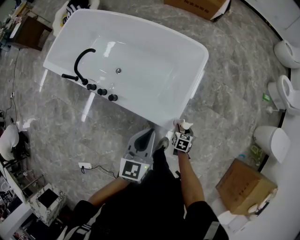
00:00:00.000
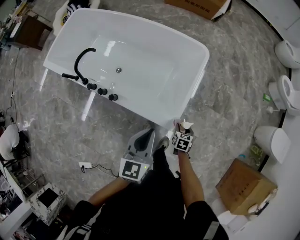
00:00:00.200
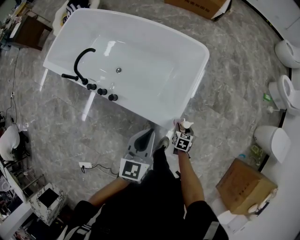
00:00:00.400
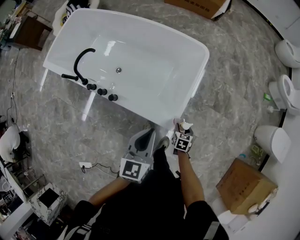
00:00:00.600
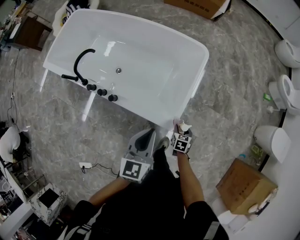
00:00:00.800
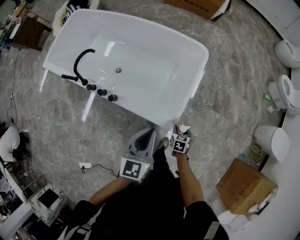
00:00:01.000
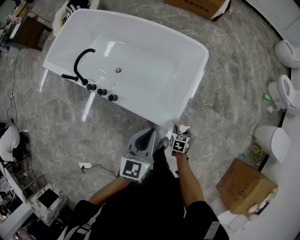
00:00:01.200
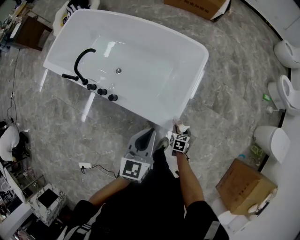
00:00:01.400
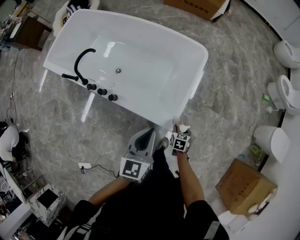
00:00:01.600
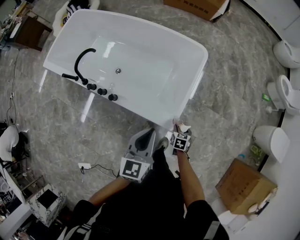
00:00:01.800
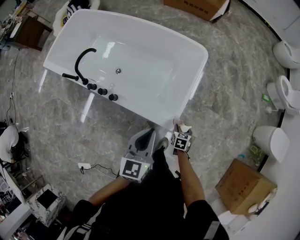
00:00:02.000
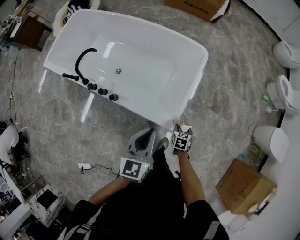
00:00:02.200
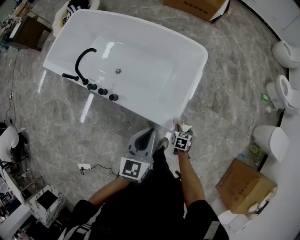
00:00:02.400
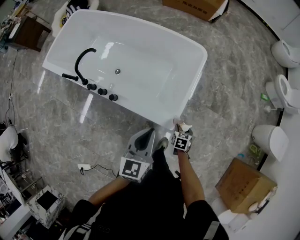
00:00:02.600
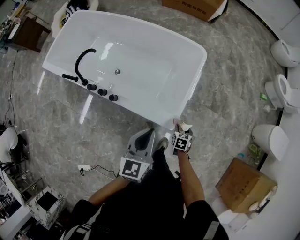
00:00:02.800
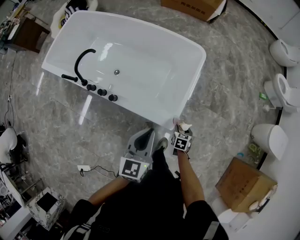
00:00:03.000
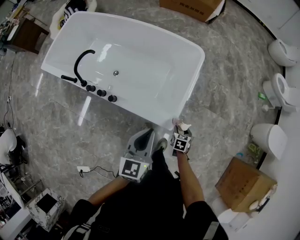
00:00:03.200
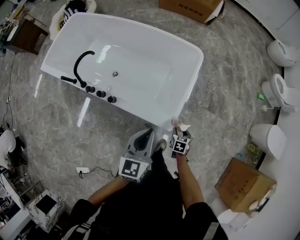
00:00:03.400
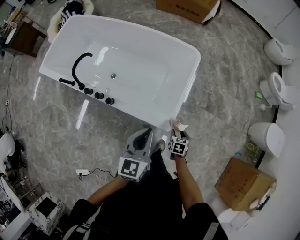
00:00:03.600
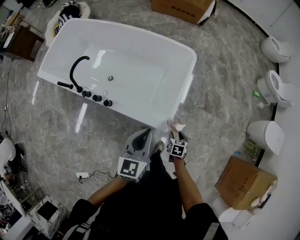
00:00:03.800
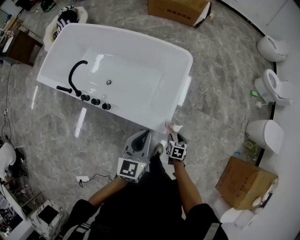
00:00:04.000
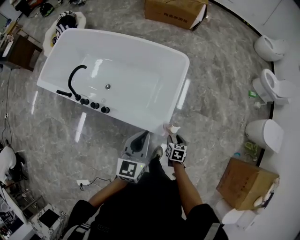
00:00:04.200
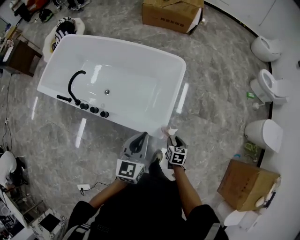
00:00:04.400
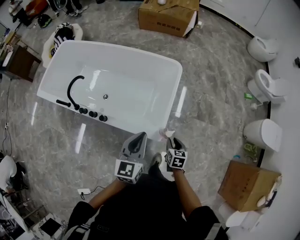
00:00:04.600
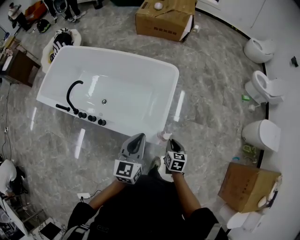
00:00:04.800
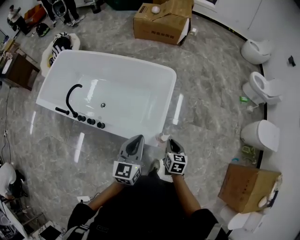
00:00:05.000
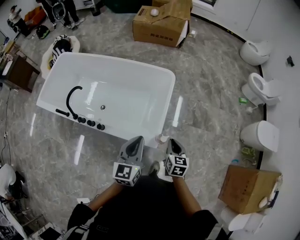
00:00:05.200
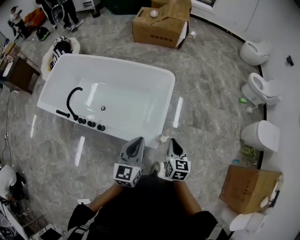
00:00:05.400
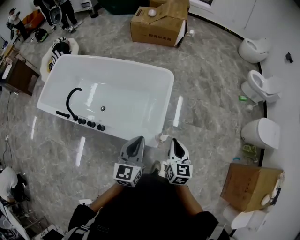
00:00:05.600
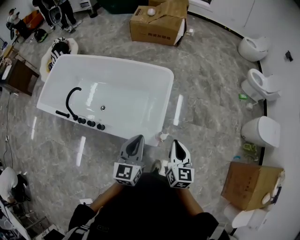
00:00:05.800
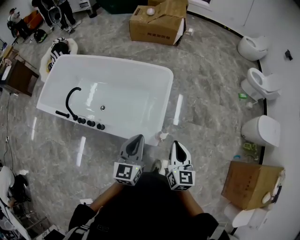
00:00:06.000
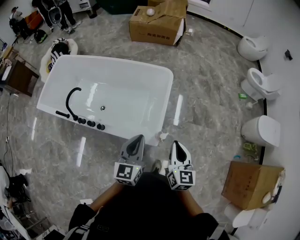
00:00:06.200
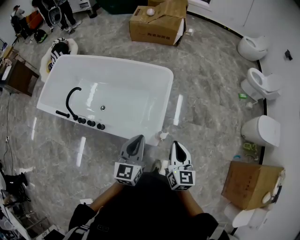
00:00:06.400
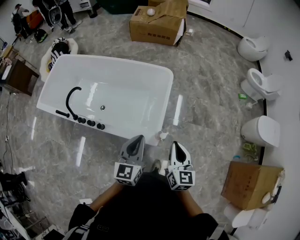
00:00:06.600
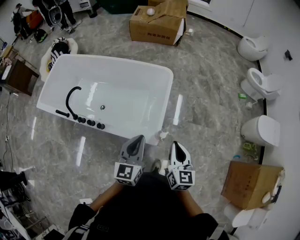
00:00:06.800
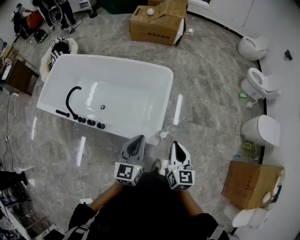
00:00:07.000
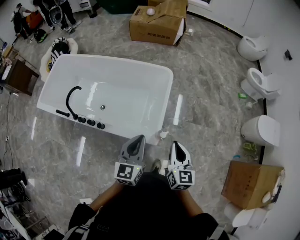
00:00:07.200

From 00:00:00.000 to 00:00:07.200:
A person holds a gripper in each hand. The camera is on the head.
From 00:00:00.000 to 00:00:02.800: There are only small adjustments of the grippers.
From 00:00:02.800 to 00:00:04.400: The right gripper travels upward by roughly 10 cm.
From 00:00:04.400 to 00:00:05.800: The left gripper ends up approximately 5 cm from where it was; the right gripper heads upward, covering roughly 25 cm, tilts its fingers approximately 30 degrees upward, and closes.
From 00:00:05.800 to 00:00:07.200: The grippers make only small movements.

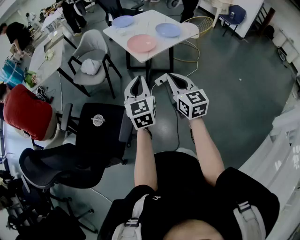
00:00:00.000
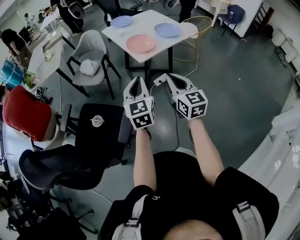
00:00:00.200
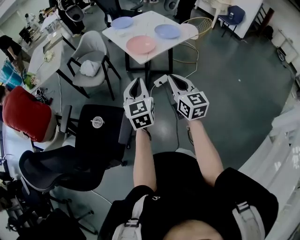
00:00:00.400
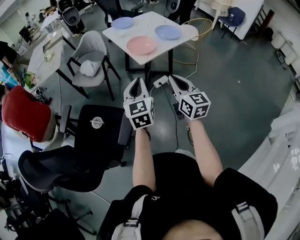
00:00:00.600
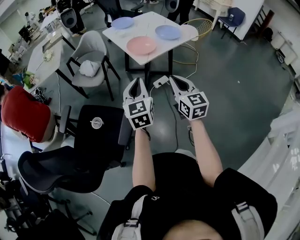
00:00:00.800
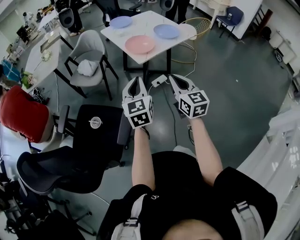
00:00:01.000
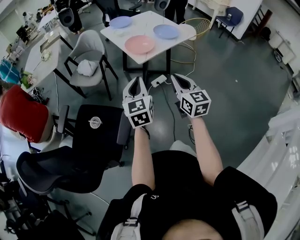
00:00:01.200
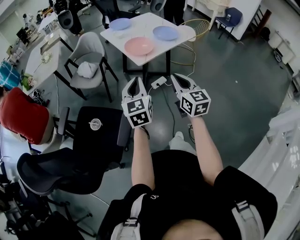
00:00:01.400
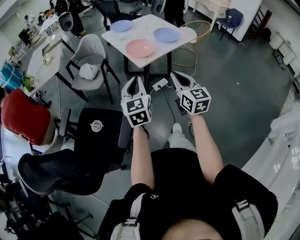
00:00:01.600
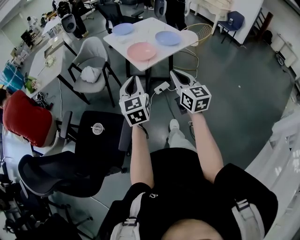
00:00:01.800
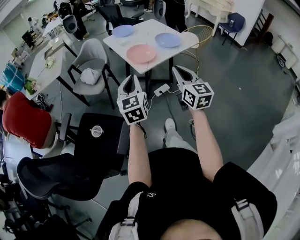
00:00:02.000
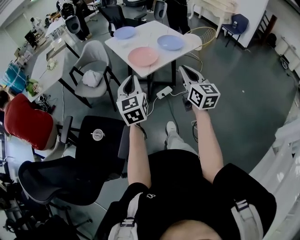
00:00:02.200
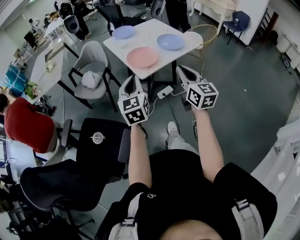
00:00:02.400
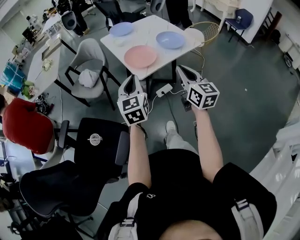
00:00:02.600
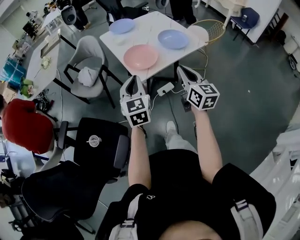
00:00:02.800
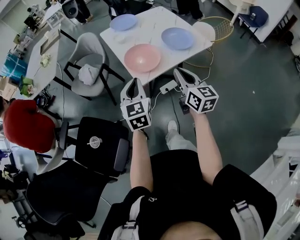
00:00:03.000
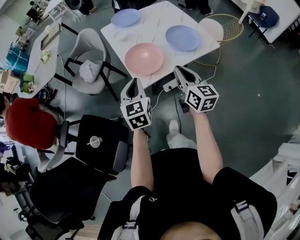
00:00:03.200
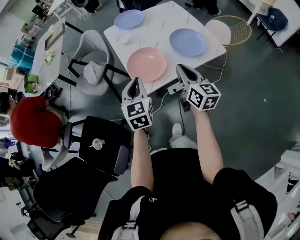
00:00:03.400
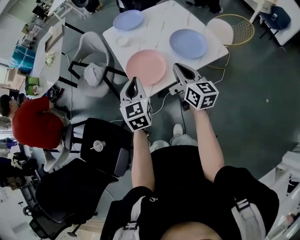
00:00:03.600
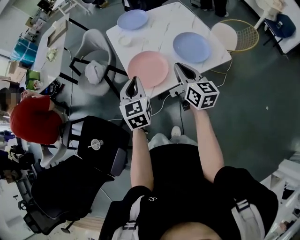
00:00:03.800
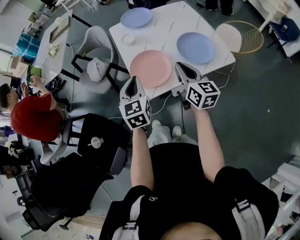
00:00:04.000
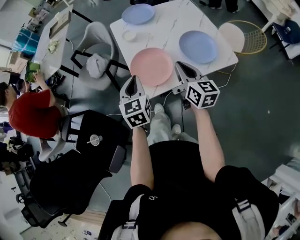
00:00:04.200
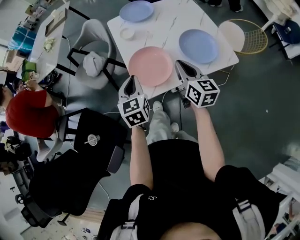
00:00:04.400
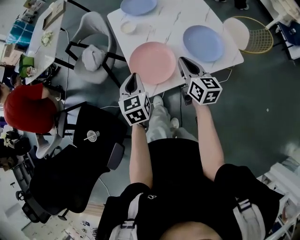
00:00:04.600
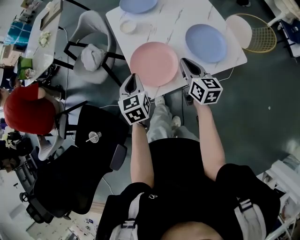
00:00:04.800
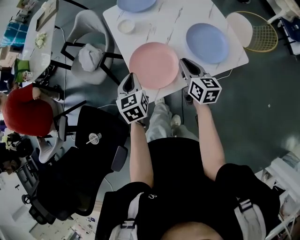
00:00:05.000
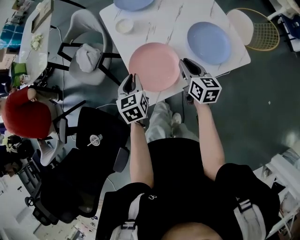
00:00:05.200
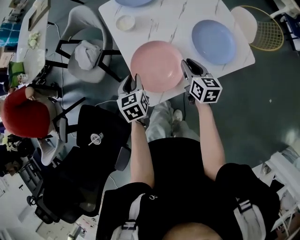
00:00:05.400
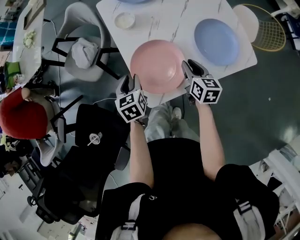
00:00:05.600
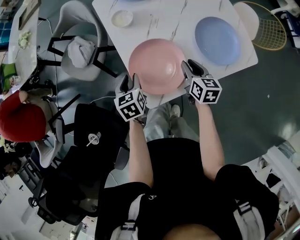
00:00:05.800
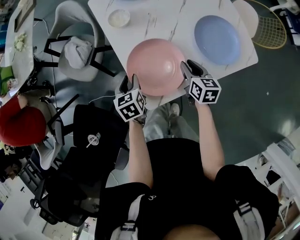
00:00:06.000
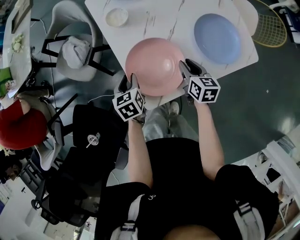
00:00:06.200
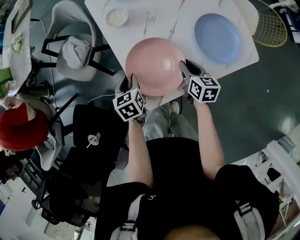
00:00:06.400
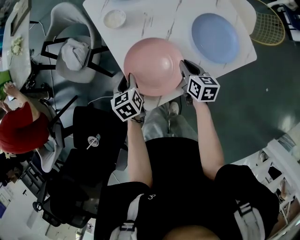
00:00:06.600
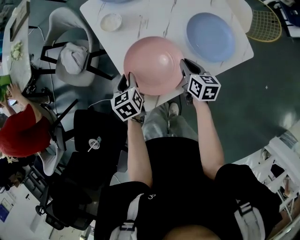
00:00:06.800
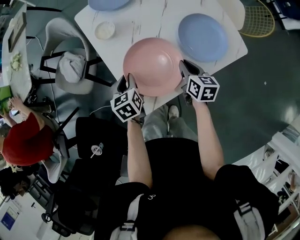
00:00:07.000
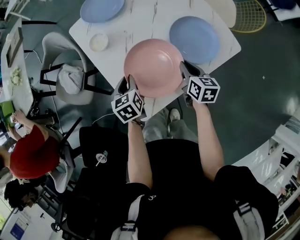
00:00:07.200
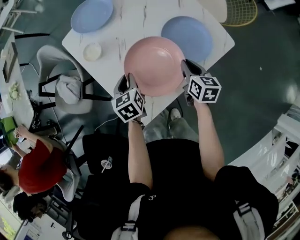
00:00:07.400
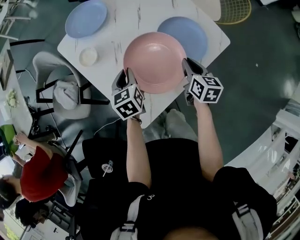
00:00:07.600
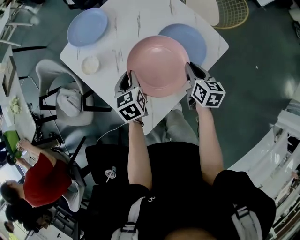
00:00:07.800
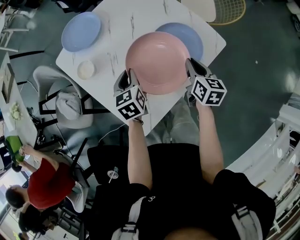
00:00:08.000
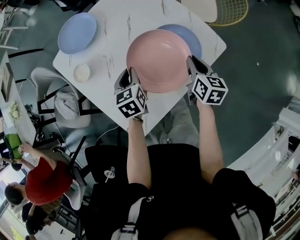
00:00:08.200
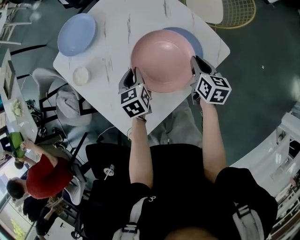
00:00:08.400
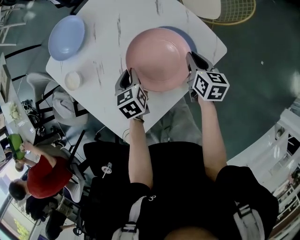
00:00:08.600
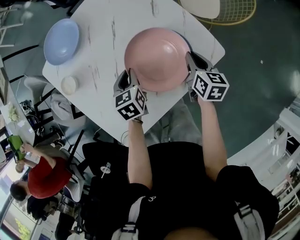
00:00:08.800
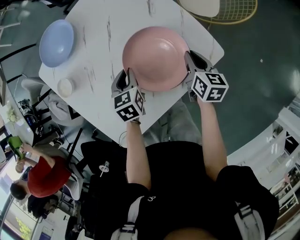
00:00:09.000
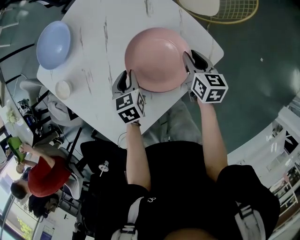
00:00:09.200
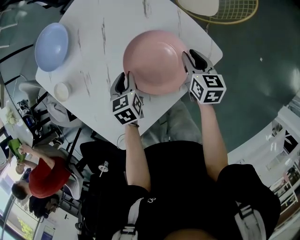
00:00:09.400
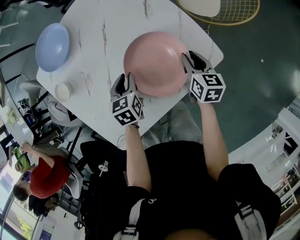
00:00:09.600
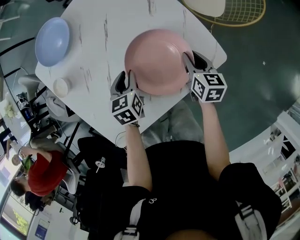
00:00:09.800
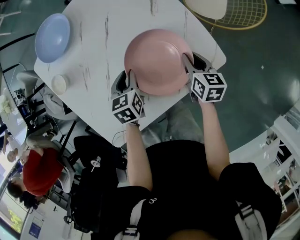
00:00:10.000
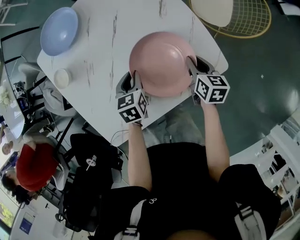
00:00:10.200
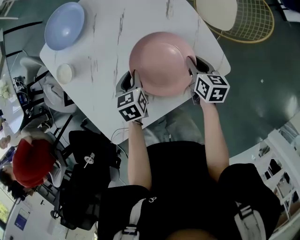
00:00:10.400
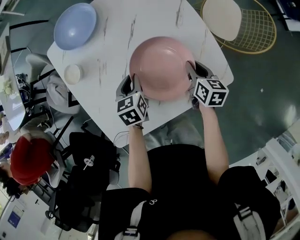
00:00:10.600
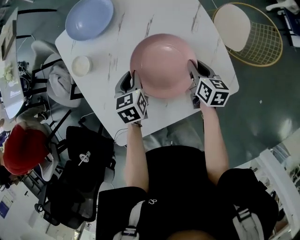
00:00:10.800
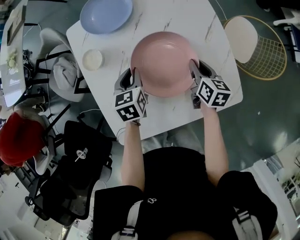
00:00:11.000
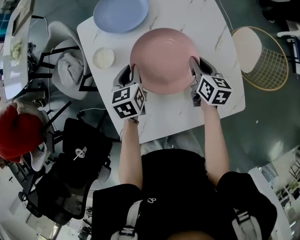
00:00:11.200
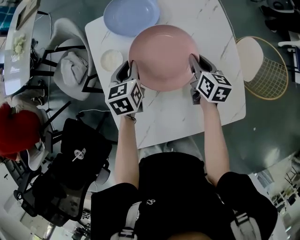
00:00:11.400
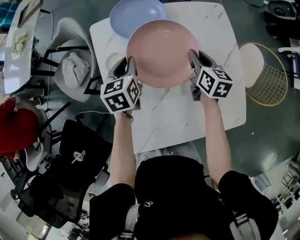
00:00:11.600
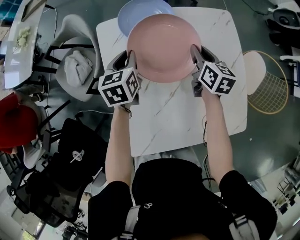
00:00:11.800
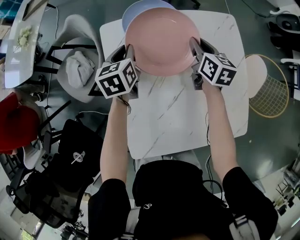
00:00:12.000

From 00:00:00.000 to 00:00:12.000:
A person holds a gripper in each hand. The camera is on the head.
From 00:00:00.000 to 00:00:01.600: There are only small adjustments of the grippers.
From 00:00:01.600 to 00:00:03.000: The right gripper shifts some 25 cm forward and to the right. The left gripper shifts some 20 cm forward.
From 00:00:03.000 to 00:00:04.400: The right gripper shifts about 20 cm forward. The left gripper shifts some 20 cm forward and downward.
From 00:00:04.400 to 00:00:06.000: The two grippers go some 20 cm downward and forward. The left gripper turns by some 30 degrees, and opens its fingers. The right gripper changes its angle by roughly 30 degrees, and opens its fingers.
From 00:00:06.000 to 00:00:07.600: The right gripper moves to the right and upward, roughly 15 cm, and rotates approximately 20 degrees; the left gripper goes approximately 20 cm to the right, forward and upward.
From 00:00:07.600 to 00:00:09.000: The two grippers go some 15 cm to the right and forward.
From 00:00:09.000 to 00:00:10.400: The grippers make only small movements.
From 00:00:10.400 to 00:00:12.000: The left gripper shifts roughly 35 cm to the left and forward, and rotates approximately 20 degrees, while the right gripper goes roughly 40 cm forward and to the left, and changes its angle by about 20 degrees.

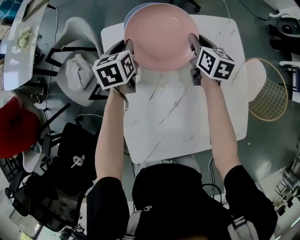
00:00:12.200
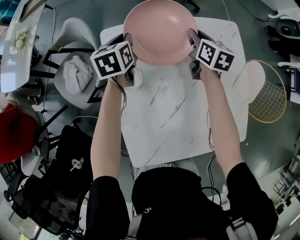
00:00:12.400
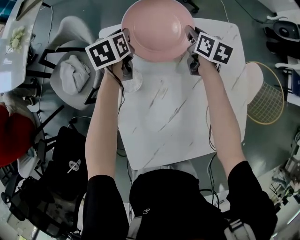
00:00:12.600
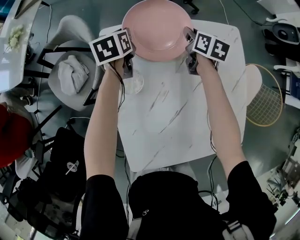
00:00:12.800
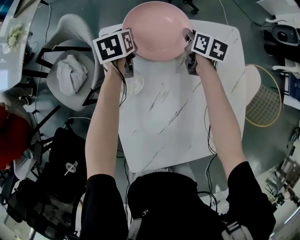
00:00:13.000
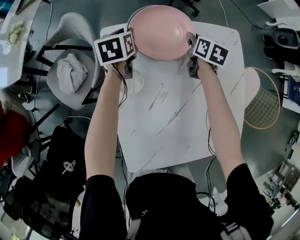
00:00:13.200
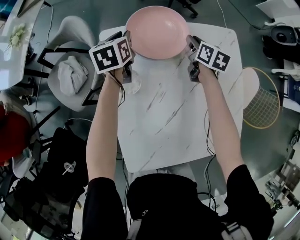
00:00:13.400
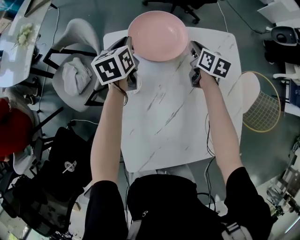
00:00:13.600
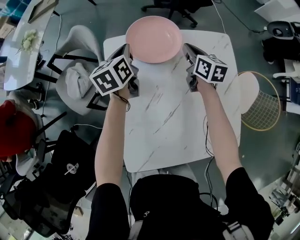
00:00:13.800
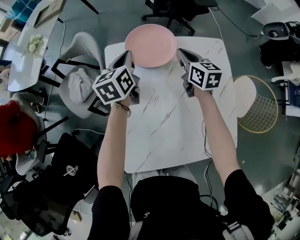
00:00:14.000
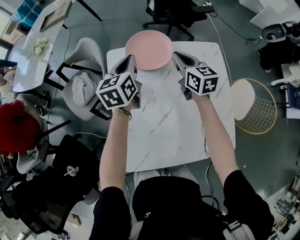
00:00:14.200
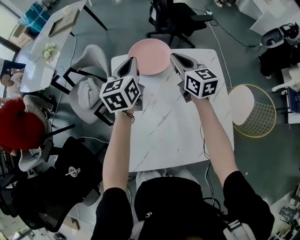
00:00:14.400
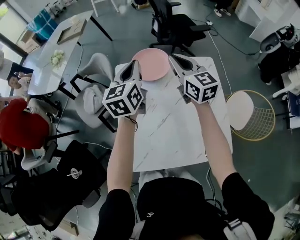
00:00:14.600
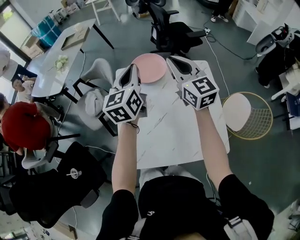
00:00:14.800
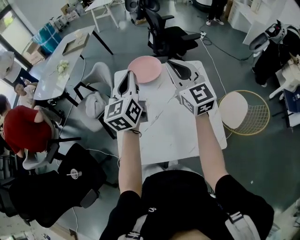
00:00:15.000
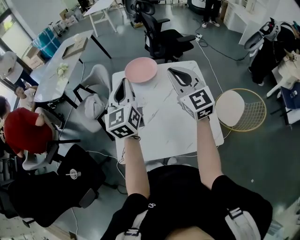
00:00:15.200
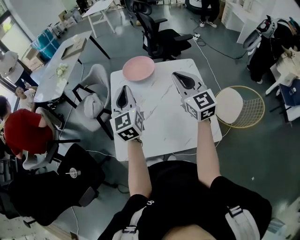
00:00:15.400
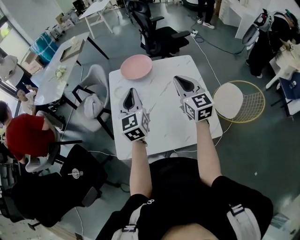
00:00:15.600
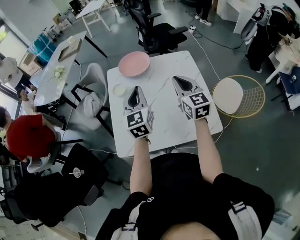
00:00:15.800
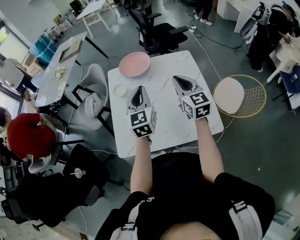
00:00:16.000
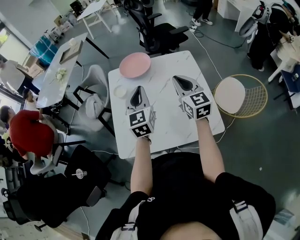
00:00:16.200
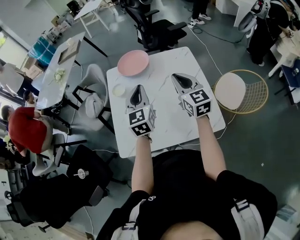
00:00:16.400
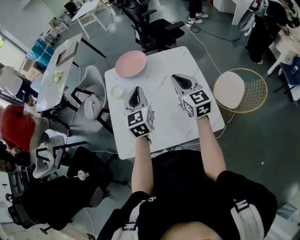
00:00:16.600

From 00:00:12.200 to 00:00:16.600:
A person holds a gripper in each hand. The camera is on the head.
From 00:00:13.600 to 00:00:15.200: The left gripper shifts approximately 40 cm backward and upward, and points its fingers about 40 degrees further upward; the right gripper is displaced upward and backward by about 40 cm, and tilts its fingers some 40 degrees upward.
From 00:00:15.200 to 00:00:16.600: Both grippers move downward and to the right, approximately 15 cm. The right gripper turns by approximately 20 degrees.
